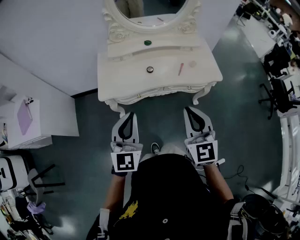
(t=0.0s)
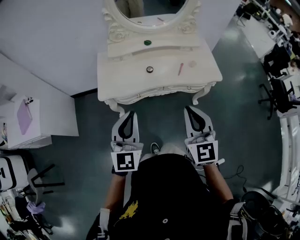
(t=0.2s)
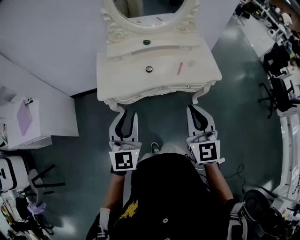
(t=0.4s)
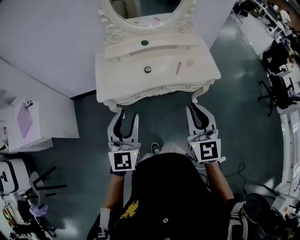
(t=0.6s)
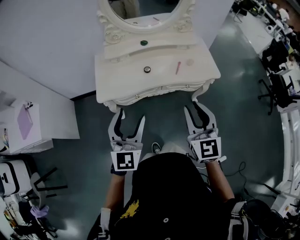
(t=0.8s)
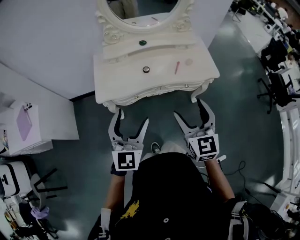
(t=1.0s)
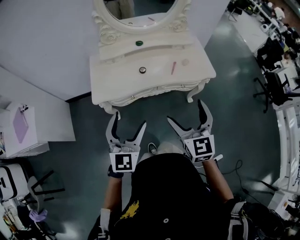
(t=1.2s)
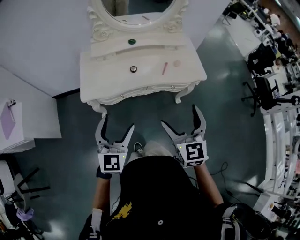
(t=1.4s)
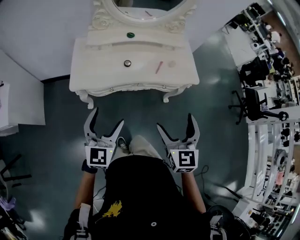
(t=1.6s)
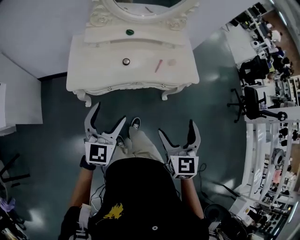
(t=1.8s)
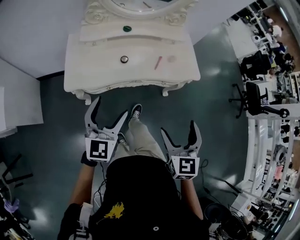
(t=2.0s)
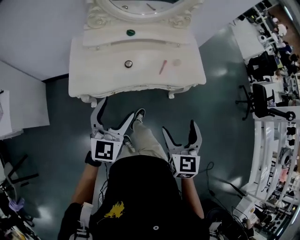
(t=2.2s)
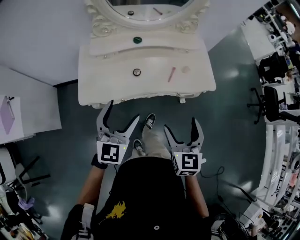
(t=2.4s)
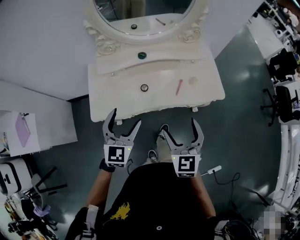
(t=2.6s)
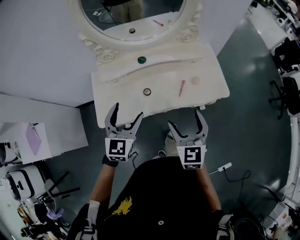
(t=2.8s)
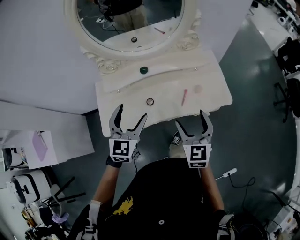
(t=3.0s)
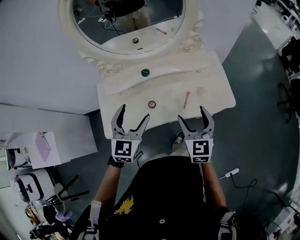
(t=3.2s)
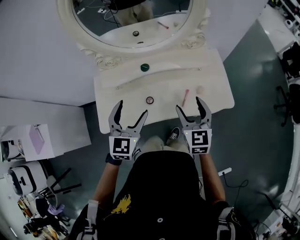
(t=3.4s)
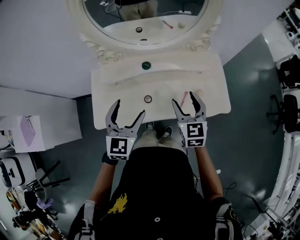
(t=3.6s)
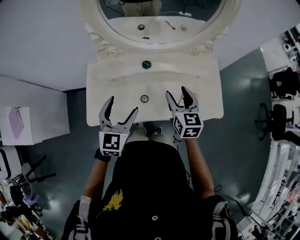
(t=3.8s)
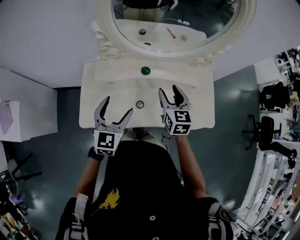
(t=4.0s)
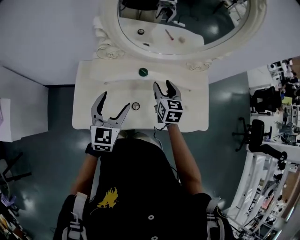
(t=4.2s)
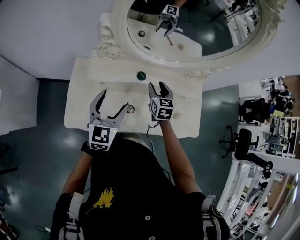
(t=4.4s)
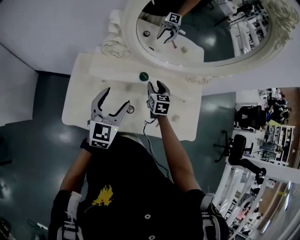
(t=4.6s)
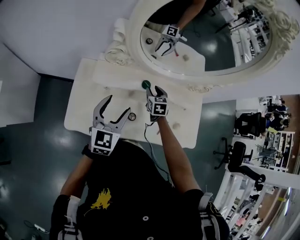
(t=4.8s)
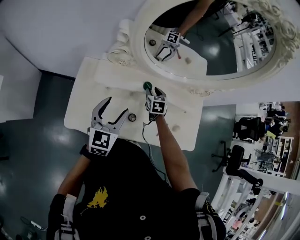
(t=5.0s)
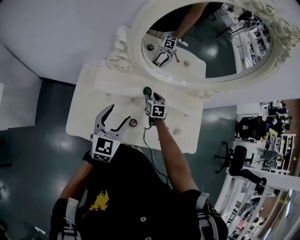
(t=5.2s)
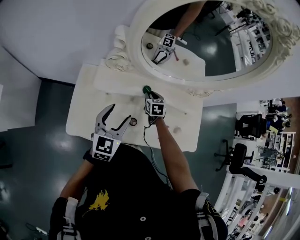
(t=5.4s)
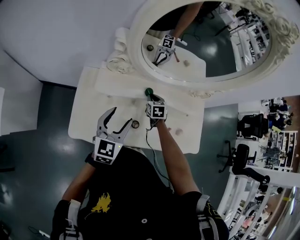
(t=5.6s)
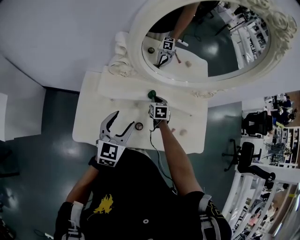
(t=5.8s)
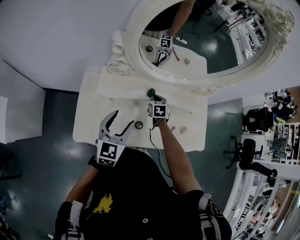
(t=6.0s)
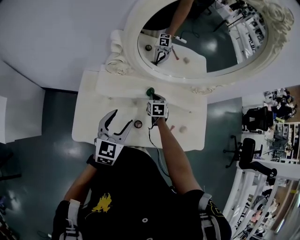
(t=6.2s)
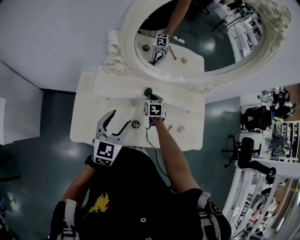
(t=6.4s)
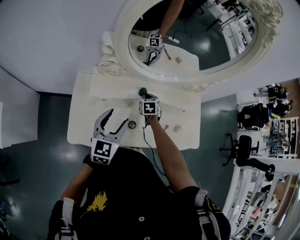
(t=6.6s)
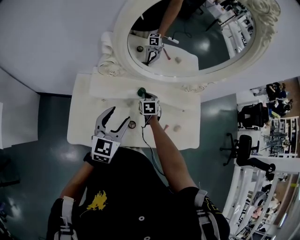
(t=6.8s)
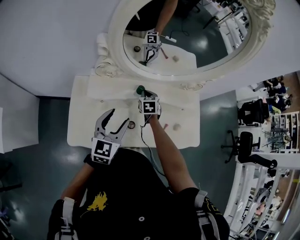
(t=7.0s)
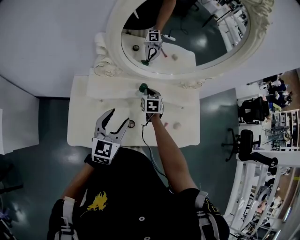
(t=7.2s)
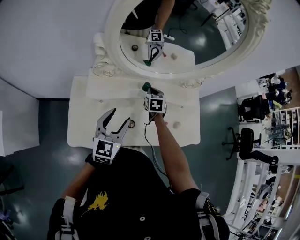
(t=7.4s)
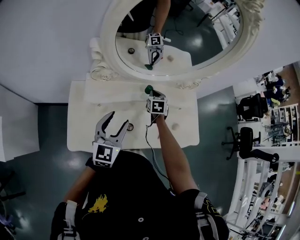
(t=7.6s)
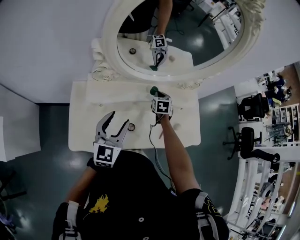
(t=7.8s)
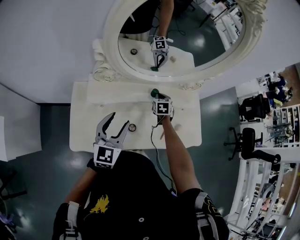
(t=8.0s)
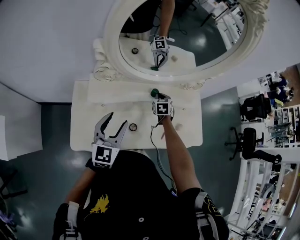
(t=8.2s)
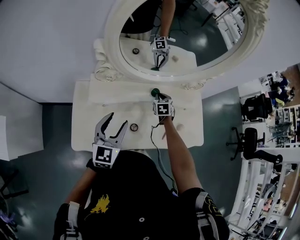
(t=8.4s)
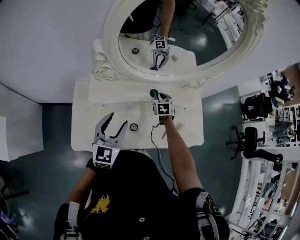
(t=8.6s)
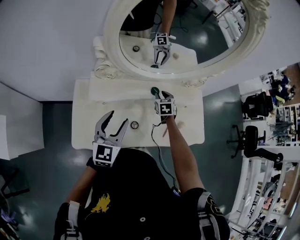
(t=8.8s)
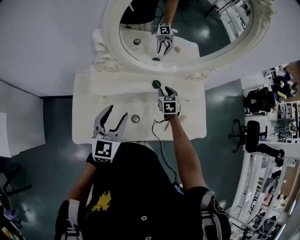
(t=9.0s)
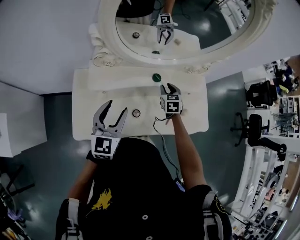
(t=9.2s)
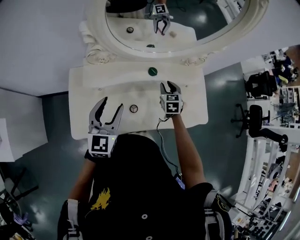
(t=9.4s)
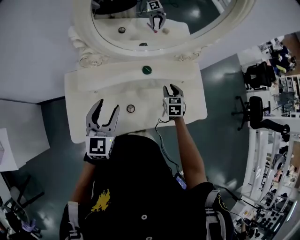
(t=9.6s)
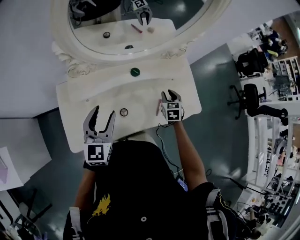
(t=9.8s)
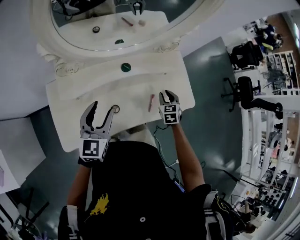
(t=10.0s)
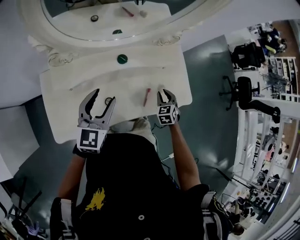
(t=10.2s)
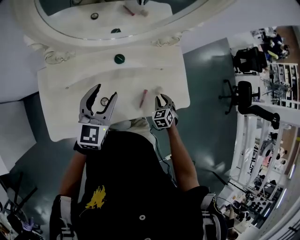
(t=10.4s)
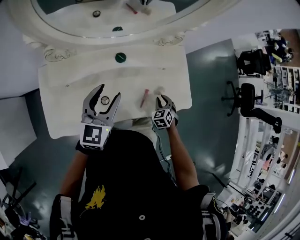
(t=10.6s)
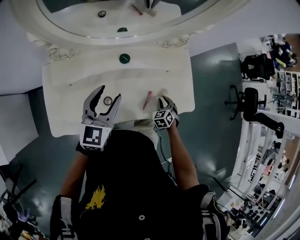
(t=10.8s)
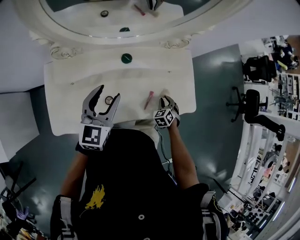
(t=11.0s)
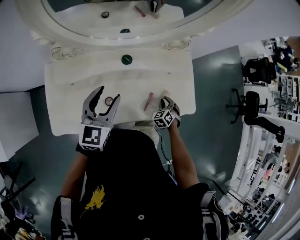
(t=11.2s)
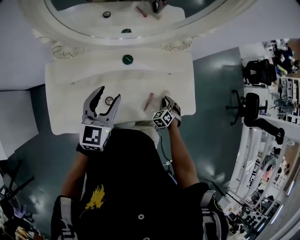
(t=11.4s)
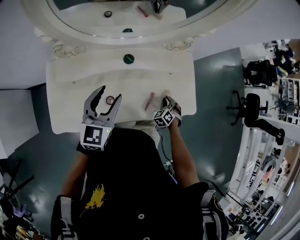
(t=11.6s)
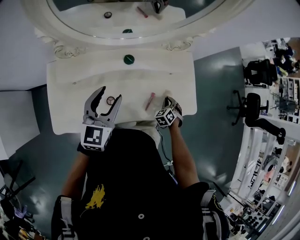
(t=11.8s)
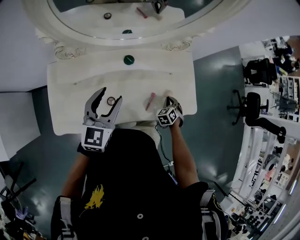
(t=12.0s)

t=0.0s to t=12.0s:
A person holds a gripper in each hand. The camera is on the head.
t=0.0s to t=1.6s: The left gripper heads downward, covering roughly 5 cm, and opens its fingers, while the right gripper changes place by approximately 5 cm, and opens up.
t=1.6s to t=3.0s: The grippers both shift forward by roughly 30 cm.
t=3.0s to t=4.4s: The right gripper moves forward, to the left and downward, roughly 35 cm, and closes up, while the left gripper travels to the left, forward and downward by approximately 20 cm.
t=4.4s to t=6.0s: The right gripper heads downward and forward, covering approximately 15 cm, and closes its fingers.
t=6.0s to t=7.6s: The right gripper travels to the right and upward by roughly 10 cm.
t=7.6s to t=9.0s: The grippers move only a little.
t=9.0s to t=10.4s: The left gripper moves to the right and forward, roughly 15 cm. Meanwhile the right gripper goes some 25 cm to the right and backward.
t=10.4s to t=12.0s: The right gripper shifts by about 5 cm.

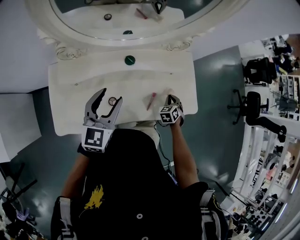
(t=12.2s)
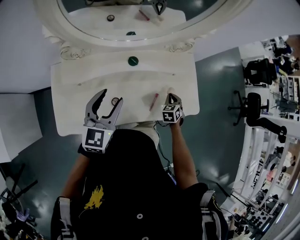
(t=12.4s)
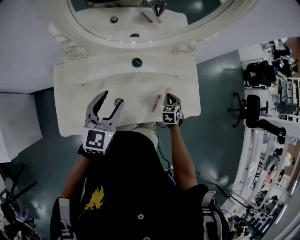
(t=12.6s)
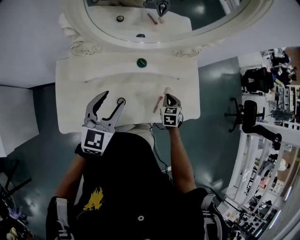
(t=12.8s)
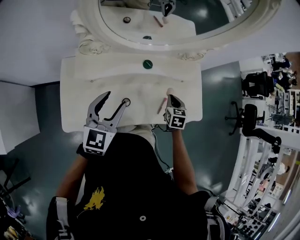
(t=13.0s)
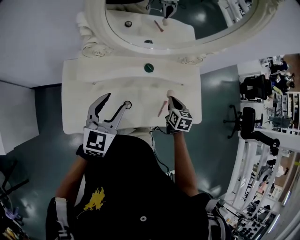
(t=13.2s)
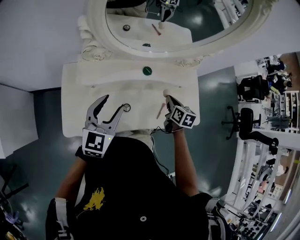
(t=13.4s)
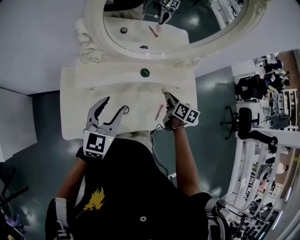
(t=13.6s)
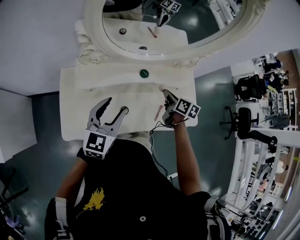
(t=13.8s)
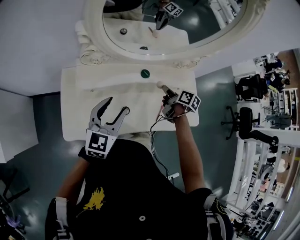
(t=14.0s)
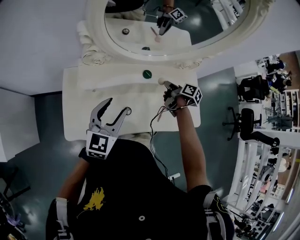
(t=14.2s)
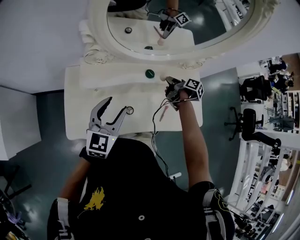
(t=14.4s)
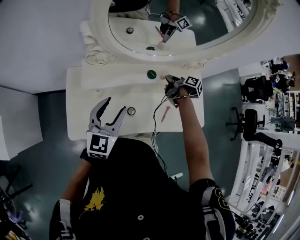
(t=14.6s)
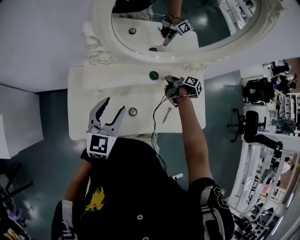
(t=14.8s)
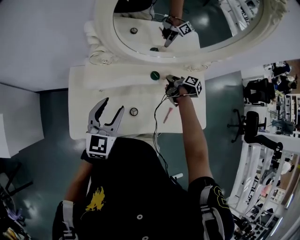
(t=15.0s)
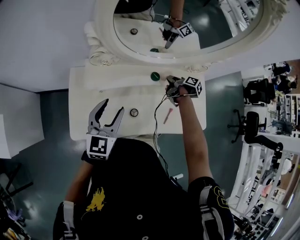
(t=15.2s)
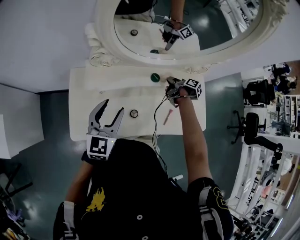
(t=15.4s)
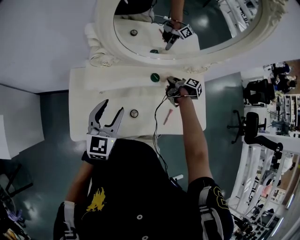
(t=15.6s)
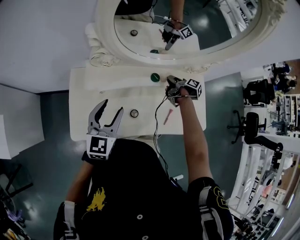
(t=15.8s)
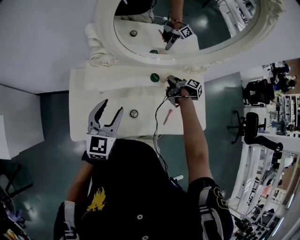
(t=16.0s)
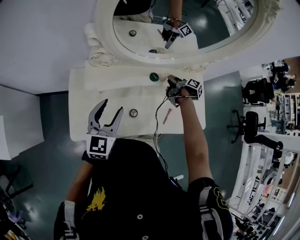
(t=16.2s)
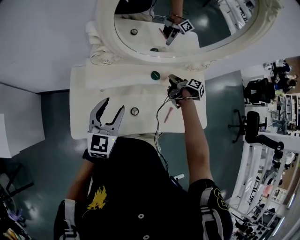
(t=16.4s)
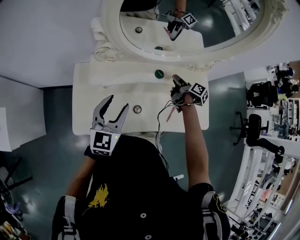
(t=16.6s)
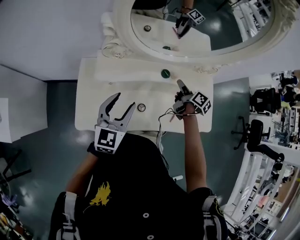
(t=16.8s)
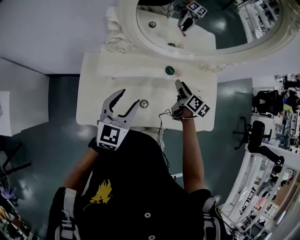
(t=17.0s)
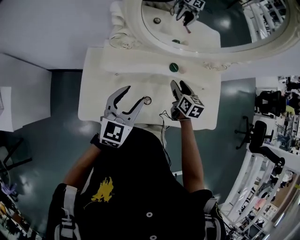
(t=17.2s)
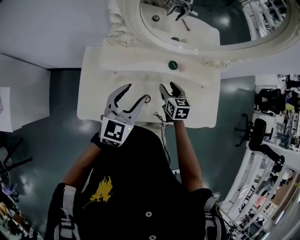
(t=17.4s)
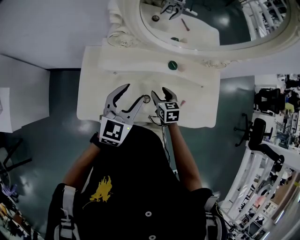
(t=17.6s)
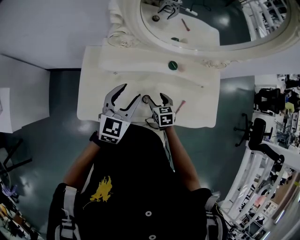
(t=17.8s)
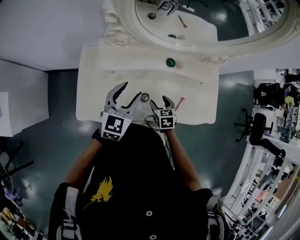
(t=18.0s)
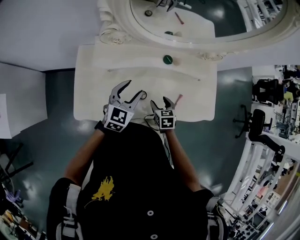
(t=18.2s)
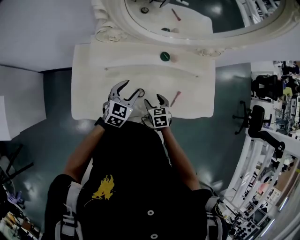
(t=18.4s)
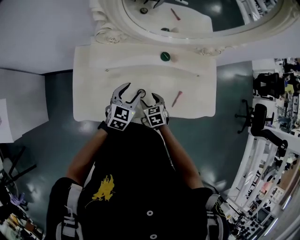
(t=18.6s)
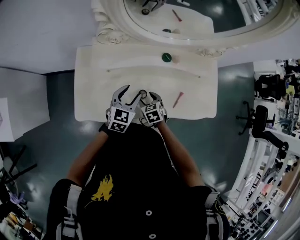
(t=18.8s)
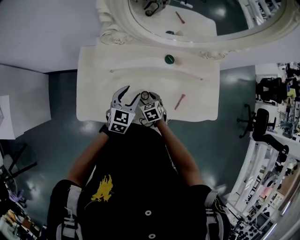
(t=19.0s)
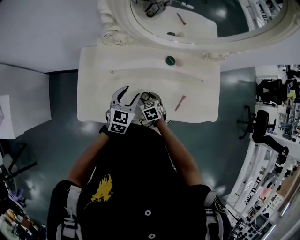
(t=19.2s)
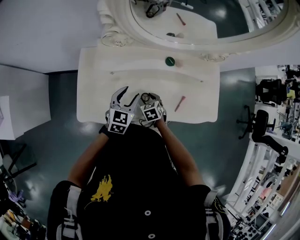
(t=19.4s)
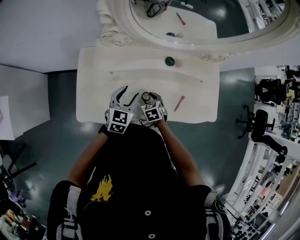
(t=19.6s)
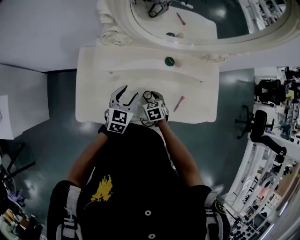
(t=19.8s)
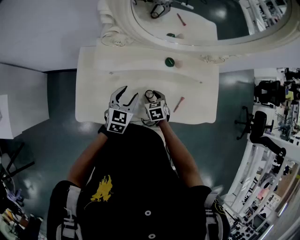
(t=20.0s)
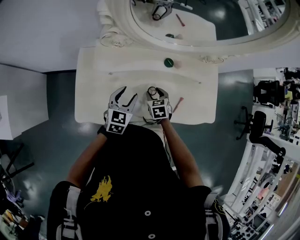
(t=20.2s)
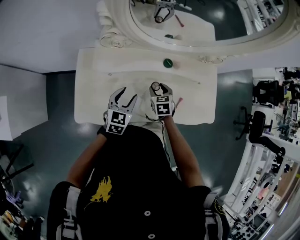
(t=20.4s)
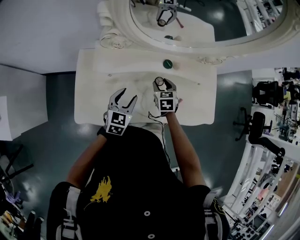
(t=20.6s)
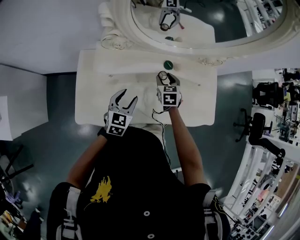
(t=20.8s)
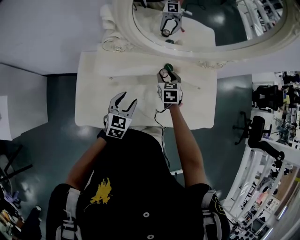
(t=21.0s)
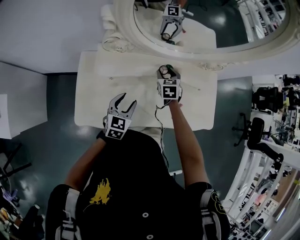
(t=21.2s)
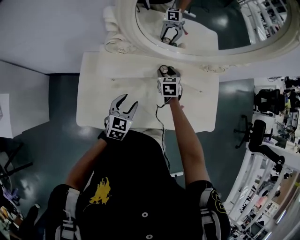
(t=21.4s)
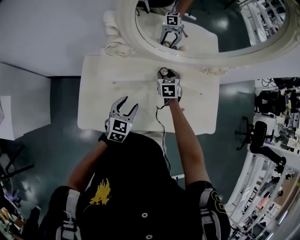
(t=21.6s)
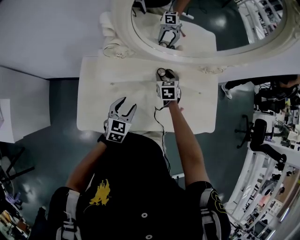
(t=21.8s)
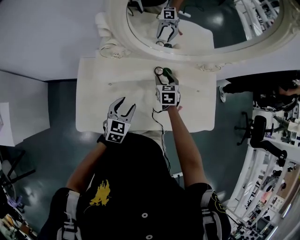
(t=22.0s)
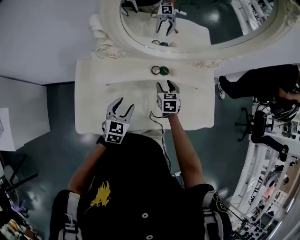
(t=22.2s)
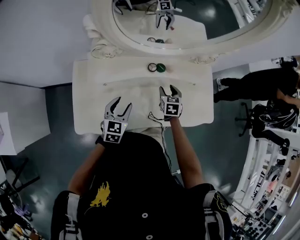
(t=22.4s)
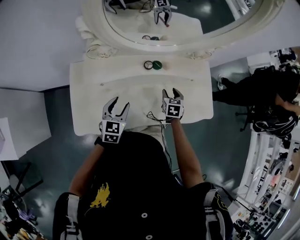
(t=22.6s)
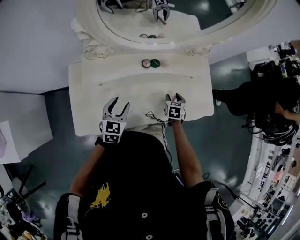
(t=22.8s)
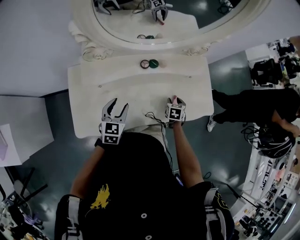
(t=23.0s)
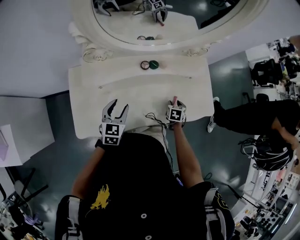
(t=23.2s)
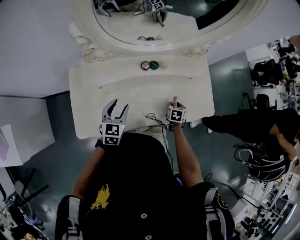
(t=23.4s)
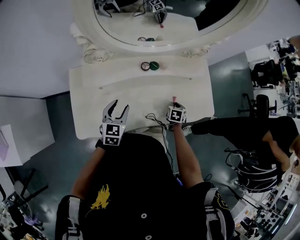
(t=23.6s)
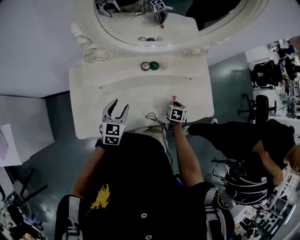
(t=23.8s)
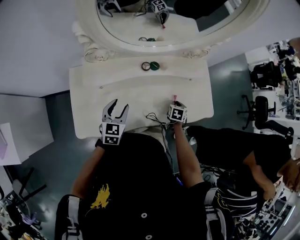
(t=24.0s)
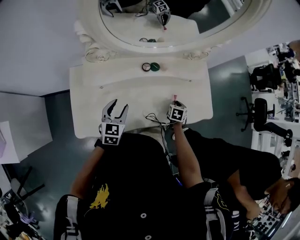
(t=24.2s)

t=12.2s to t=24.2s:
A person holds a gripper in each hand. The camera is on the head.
t=12.2s to t=13.8s: The right gripper heads to the left and upward, covering about 25 cm, and twists roughly 60 degrees clockwise, seen from behind. Meanwhile the left gripper travels to the left and backward by some 10 cm.
t=13.8s to t=15.2s: The left gripper changes place by roughly 5 cm. The right gripper shifts some 15 cm forward and downward, and changes its angle by roughly 40 degrees.
t=15.2s to t=16.6s: The right gripper heads upward, covering about 5 cm.
t=16.6s to t=18.2s: The right gripper travels backward, downward and to the left by roughly 25 cm, and twists some 70 degrees counterclockwise, seen from behind. Meanwhile the left gripper travels downward by about 10 cm.
t=18.2s to t=19.8s: The right gripper moves to the left, approximately 5 cm.
t=19.8s to t=21.2s: The right gripper moves forward and upward, about 20 cm.
t=21.2s to t=22.6s: The right gripper moves to the right and backward, roughly 15 cm.
t=22.6s to t=24.2s: The right gripper shifts approximately 10 cm to the right and downward.
